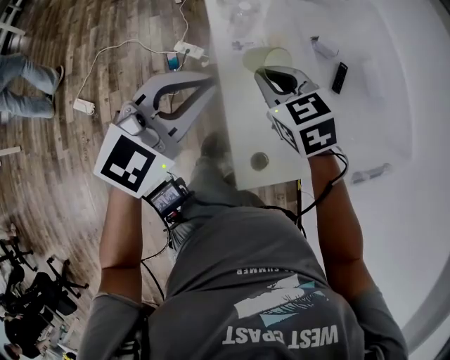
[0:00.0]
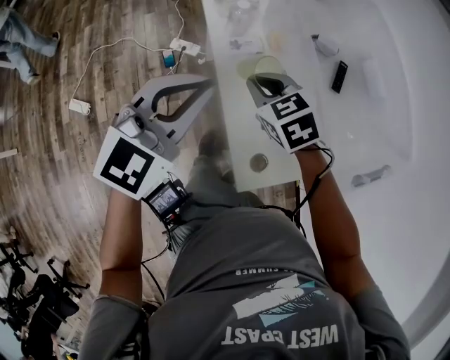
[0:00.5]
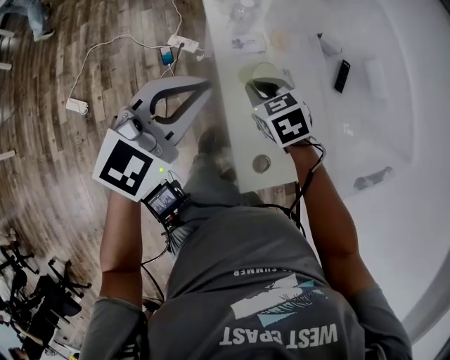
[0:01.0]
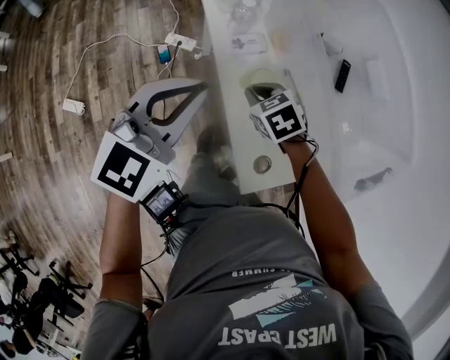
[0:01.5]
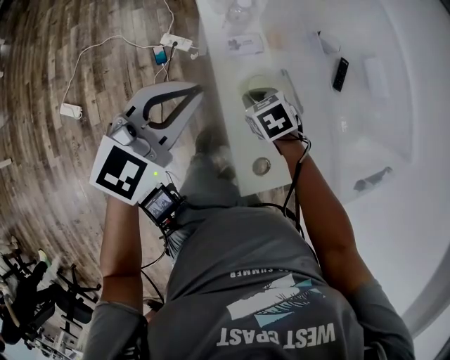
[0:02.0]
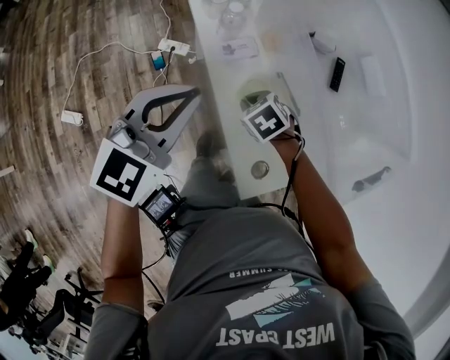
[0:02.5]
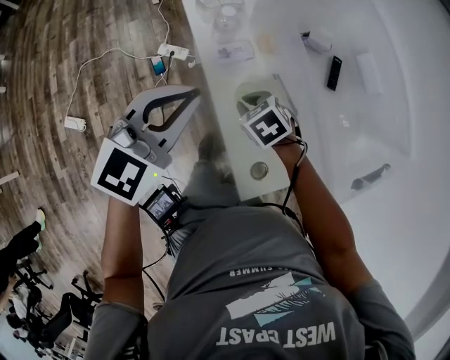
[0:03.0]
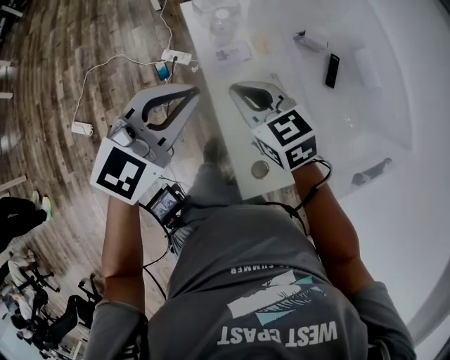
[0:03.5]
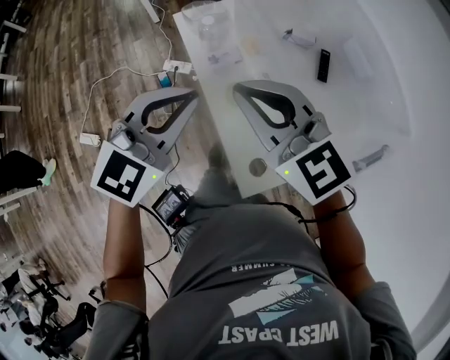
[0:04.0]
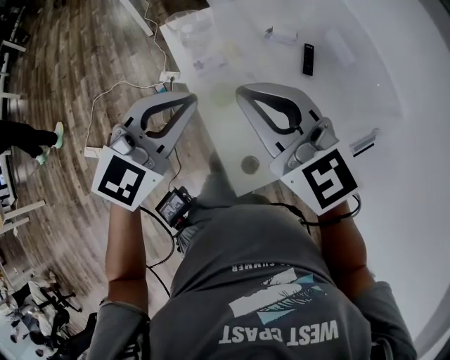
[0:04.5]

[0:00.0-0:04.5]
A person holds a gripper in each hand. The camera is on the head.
0:00.0 to 0:02.0: The left gripper goes about 5 cm downward; the right gripper is displaced downward by some 20 cm, and turns by roughly 30 degrees.
0:02.0 to 0:04.5: The left gripper is displaced upward and to the right by some 15 cm. The right gripper shifts about 35 cm upward, and points its fingers some 60 degrees further upward.

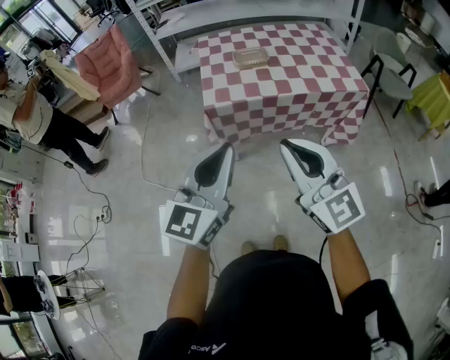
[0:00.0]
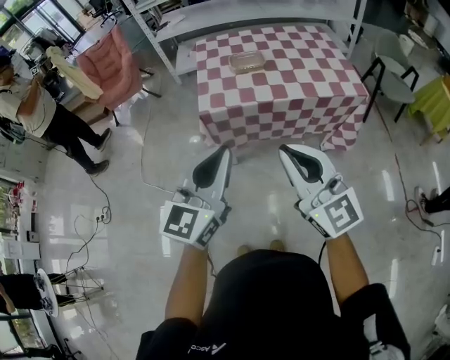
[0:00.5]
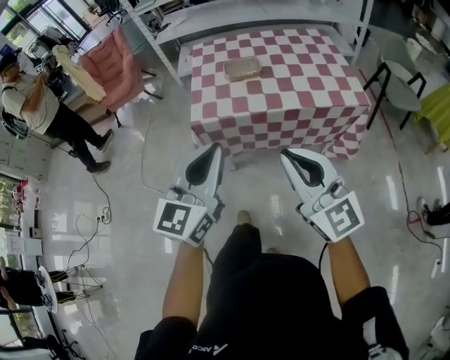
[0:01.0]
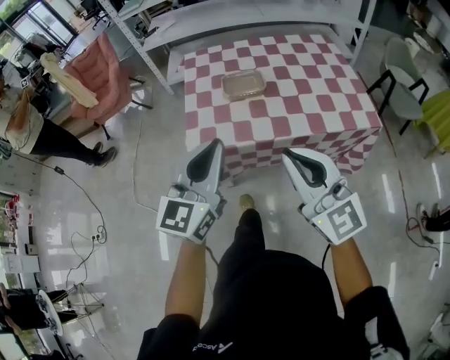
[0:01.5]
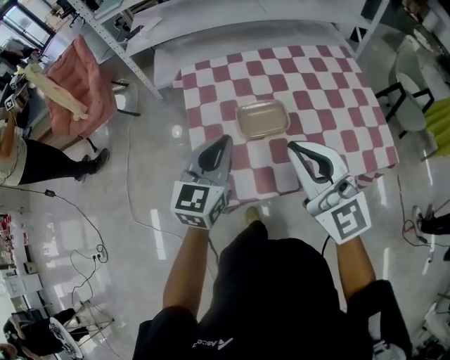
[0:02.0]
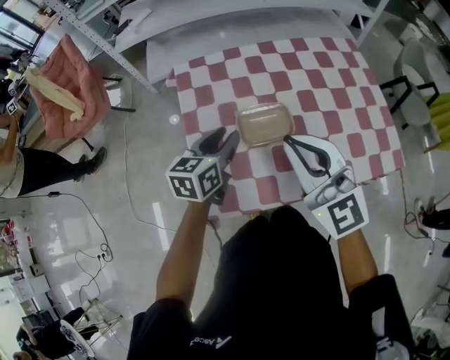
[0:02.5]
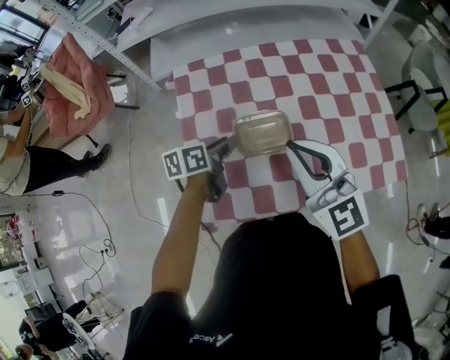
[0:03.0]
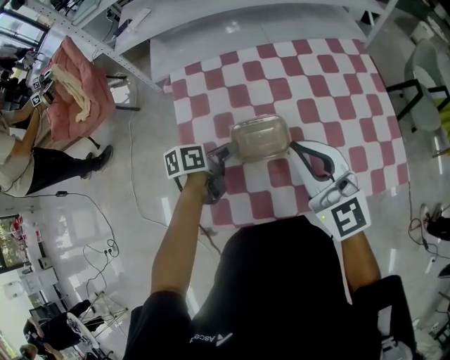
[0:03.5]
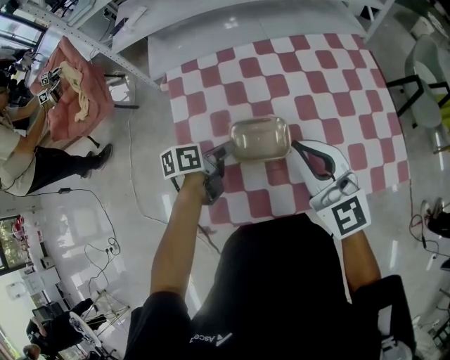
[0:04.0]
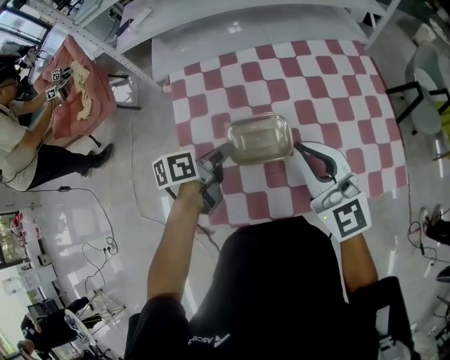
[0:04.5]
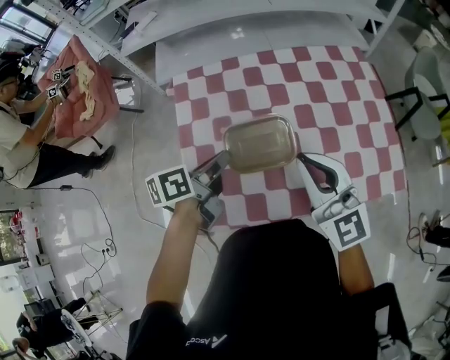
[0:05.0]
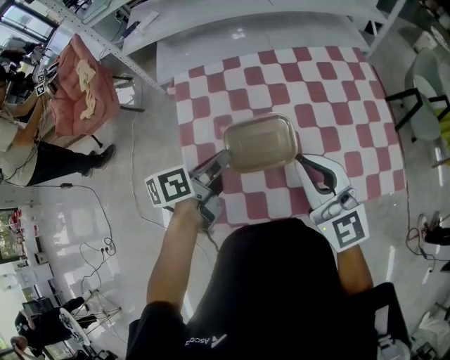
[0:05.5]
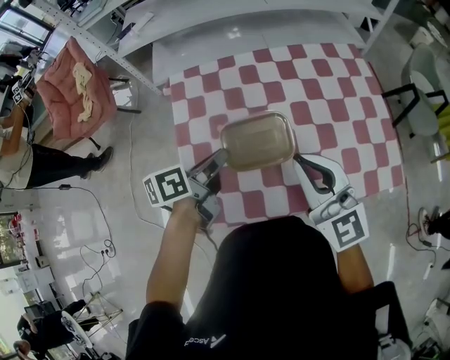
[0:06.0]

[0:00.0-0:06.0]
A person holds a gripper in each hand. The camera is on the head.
0:00.0 to 0:02.0: The pair of grippers is taken forward, approximately 50 cm.
0:02.0 to 0:04.0: The right gripper goes approximately 15 cm forward and downward; the left gripper heads downward and forward, covering approximately 25 cm, rolls counterclockwise, seen from behind, by roughly 60 degrees, and opens, then closes again.
0:04.0 to 0:06.0: The left gripper shifts some 10 cm upward.

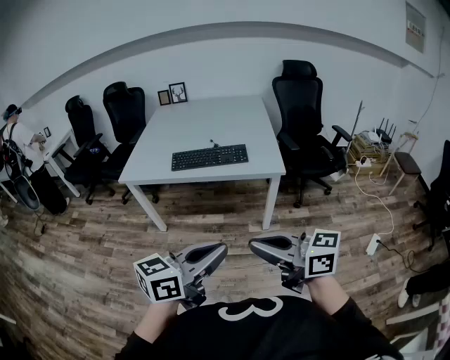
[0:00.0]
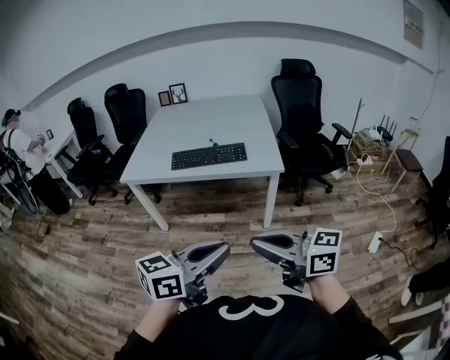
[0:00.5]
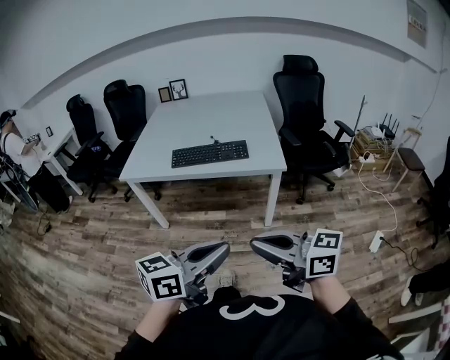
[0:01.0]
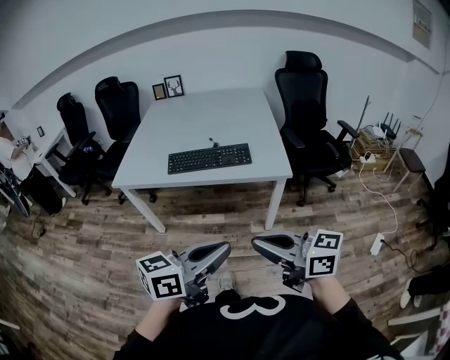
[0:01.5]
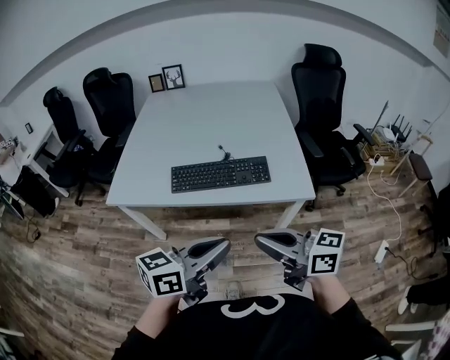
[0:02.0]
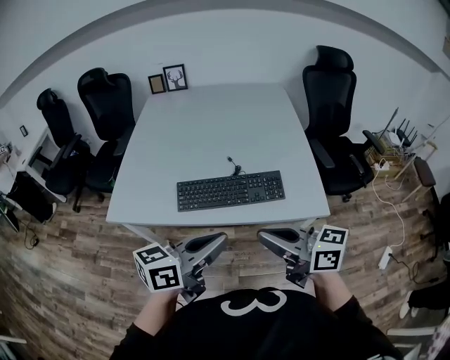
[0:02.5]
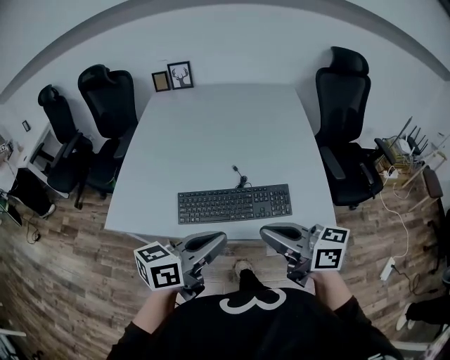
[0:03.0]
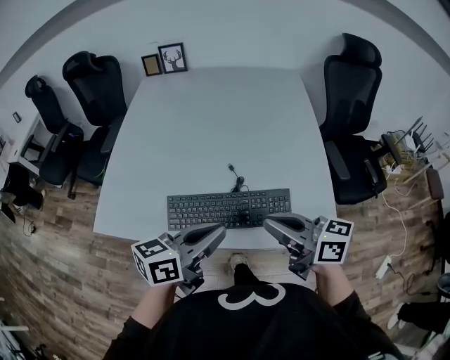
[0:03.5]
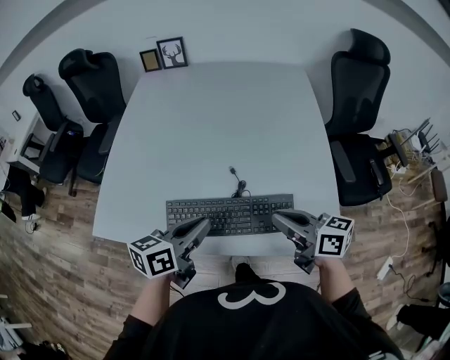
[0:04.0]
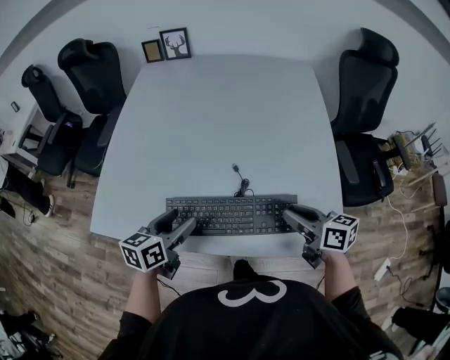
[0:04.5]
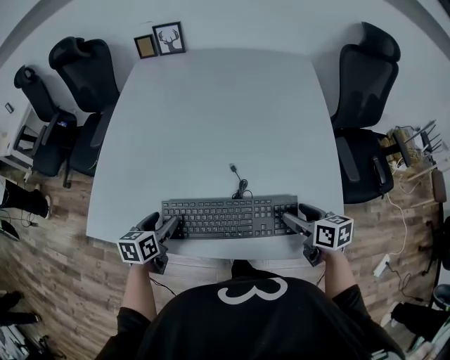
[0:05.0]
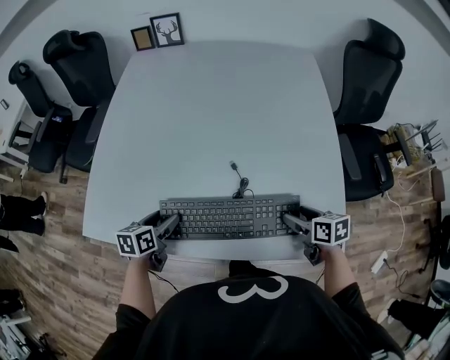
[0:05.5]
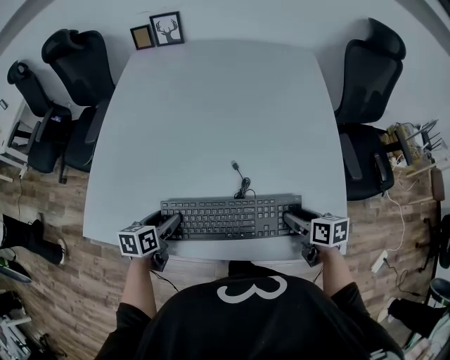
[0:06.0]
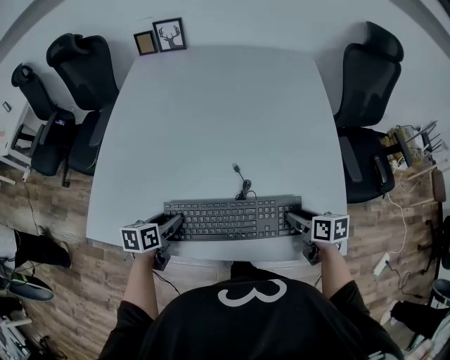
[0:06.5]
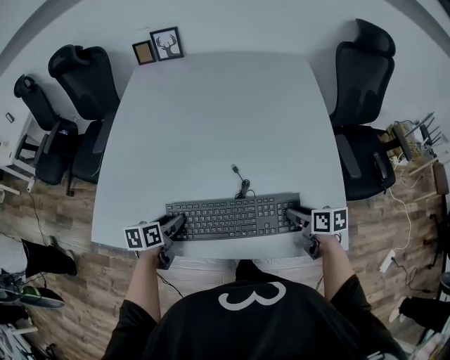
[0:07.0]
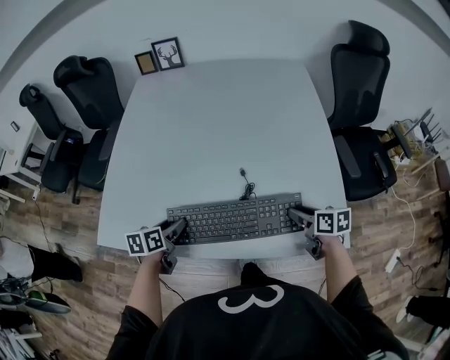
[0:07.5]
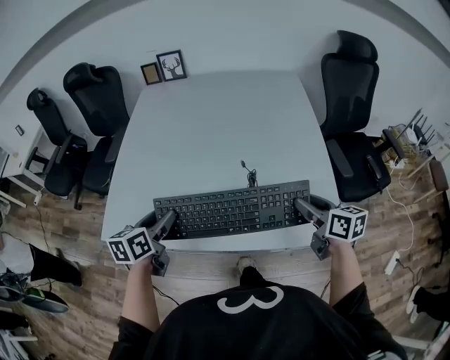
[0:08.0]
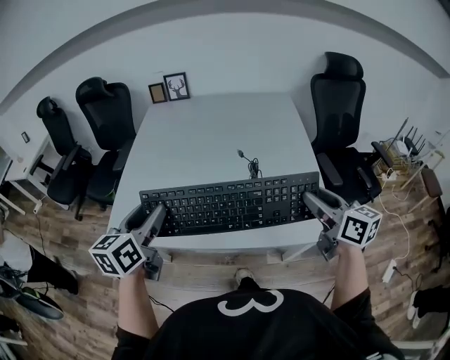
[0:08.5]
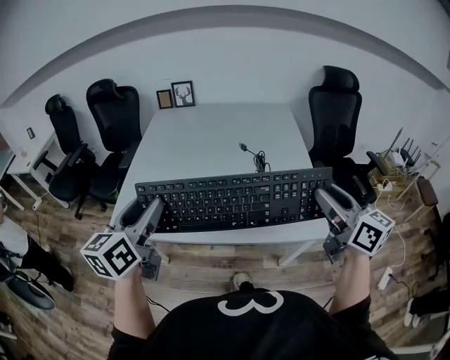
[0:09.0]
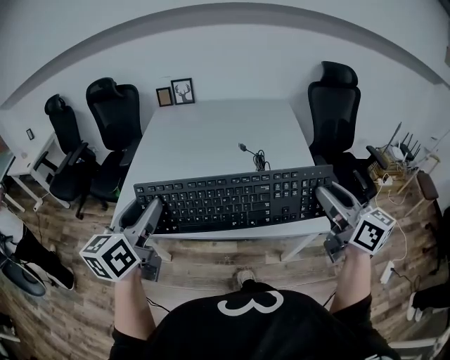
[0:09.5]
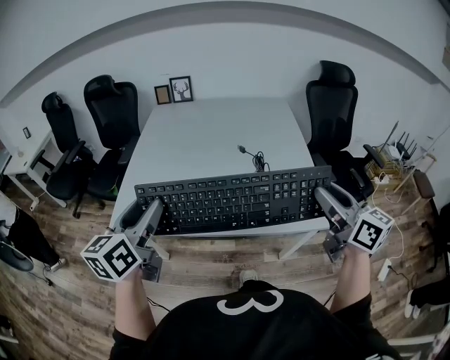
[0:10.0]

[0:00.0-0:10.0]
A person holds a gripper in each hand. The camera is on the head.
0:00.0 to 0:02.0: The two grippers go roughly 25 cm forward.
0:02.0 to 0:04.0: Both grippers move forward, some 30 cm.
0:04.0 to 0:06.0: The right gripper travels downward and to the right by approximately 20 cm, tilts its fingers roughly 30 degrees downward, and opens up. Meanwhile the left gripper heads downward and to the left, covering some 20 cm, rotates approximately 30 degrees, and opens its fingers.
0:06.0 to 0:08.0: The grippers both shift upward by approximately 15 cm. The right gripper rotates roughly 20 degrees.
0:08.0 to 0:10.0: The grippers both shift upward and backward by some 25 cm. The right gripper changes its angle by some 30 degrees, while the left gripper rotates roughly 20 degrees.

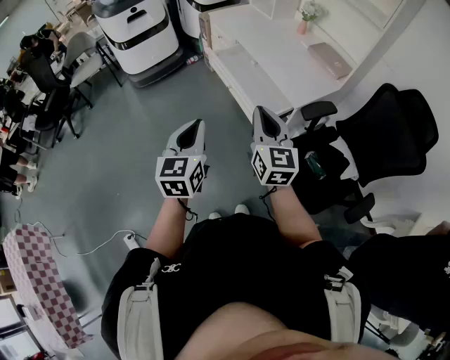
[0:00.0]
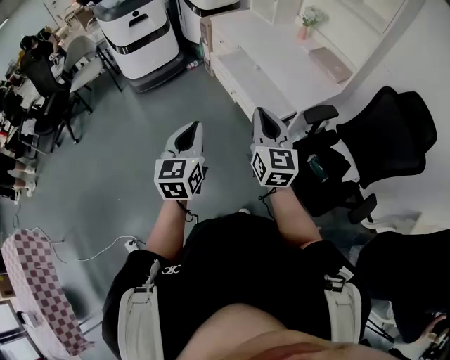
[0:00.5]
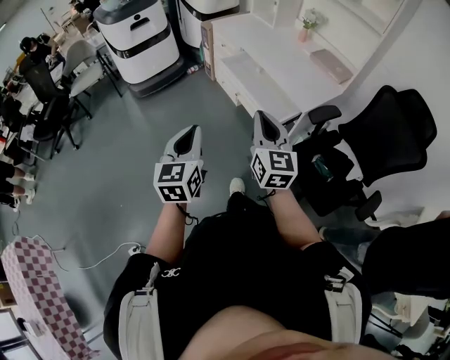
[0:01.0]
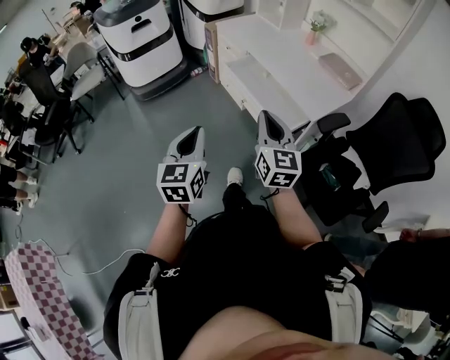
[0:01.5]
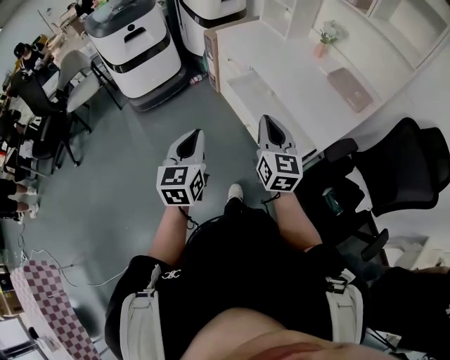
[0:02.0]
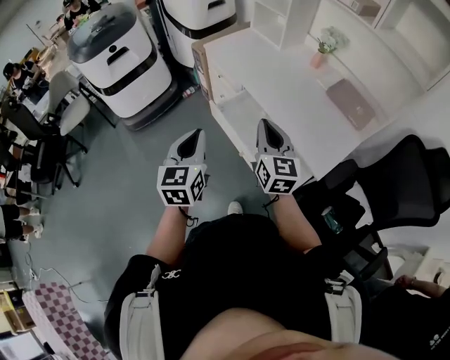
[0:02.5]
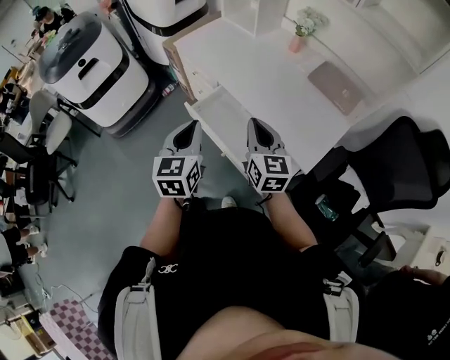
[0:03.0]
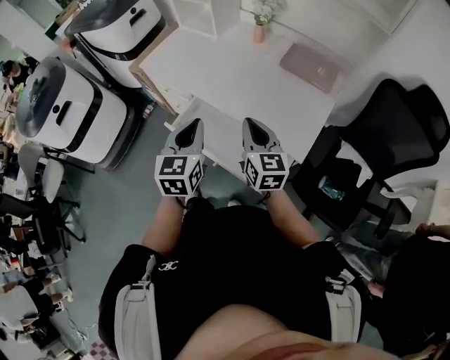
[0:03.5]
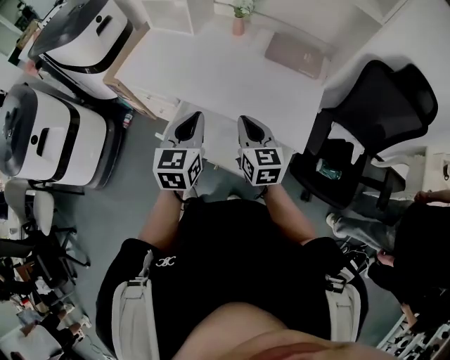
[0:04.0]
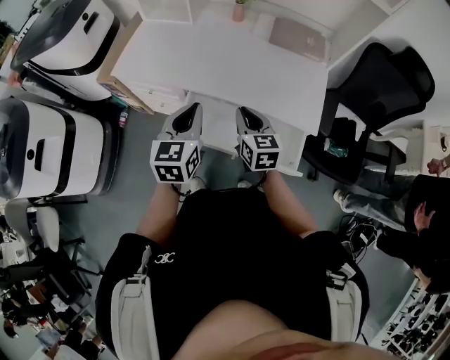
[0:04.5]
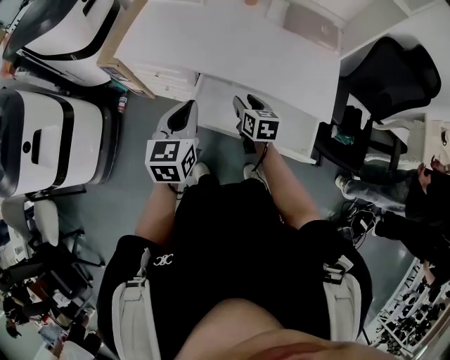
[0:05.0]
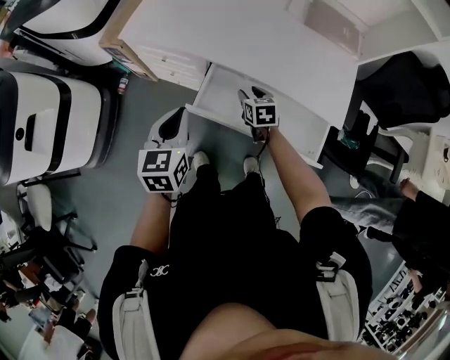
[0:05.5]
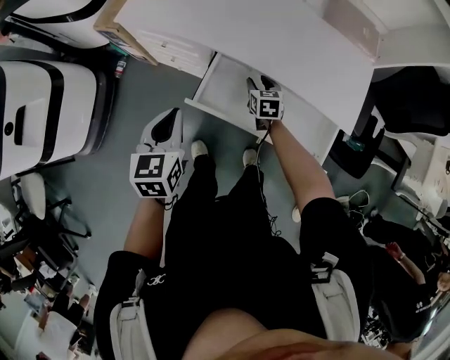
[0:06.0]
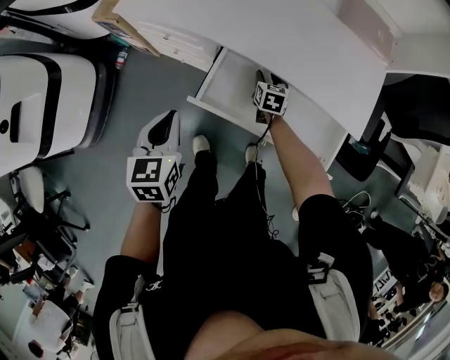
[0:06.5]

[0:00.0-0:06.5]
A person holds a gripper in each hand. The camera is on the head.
0:00.0 to 0:02.0: Both grippers move forward and to the left, roughly 25 cm.
0:02.0 to 0:04.5: The right gripper moves some 35 cm, and rotates approximately 40 degrees. The left gripper changes place by some 40 cm, and changes its angle by approximately 50 degrees.
0:04.5 to 0:06.5: The right gripper shifts about 35 cm downward and forward, swivels roughly 20 degrees, and opens; the left gripper is displaced to the left and downward by roughly 25 cm, and turns by approximately 20 degrees.
